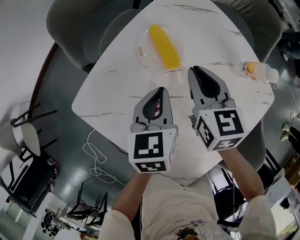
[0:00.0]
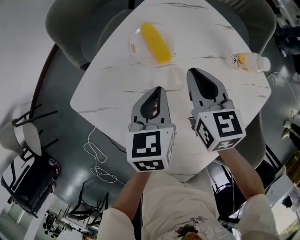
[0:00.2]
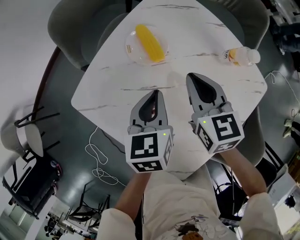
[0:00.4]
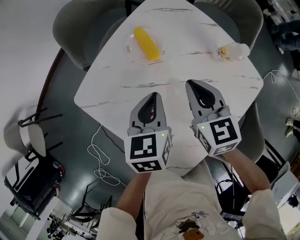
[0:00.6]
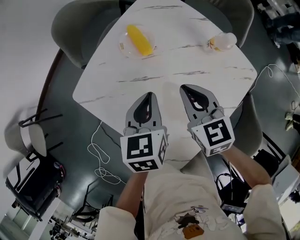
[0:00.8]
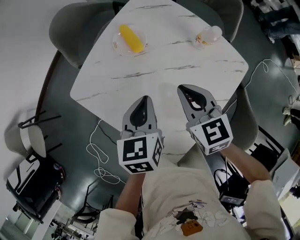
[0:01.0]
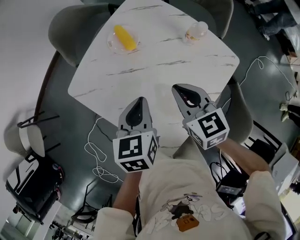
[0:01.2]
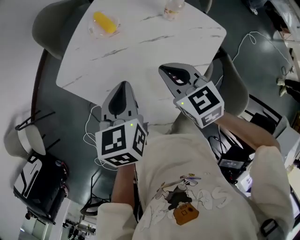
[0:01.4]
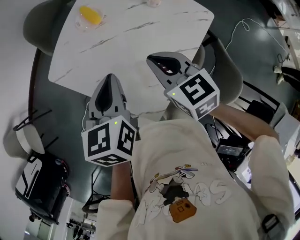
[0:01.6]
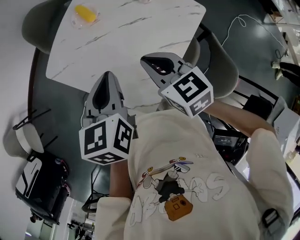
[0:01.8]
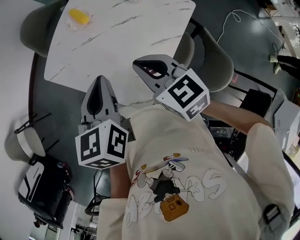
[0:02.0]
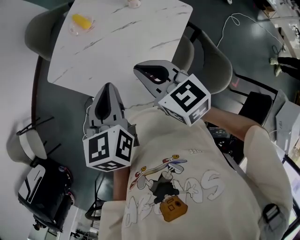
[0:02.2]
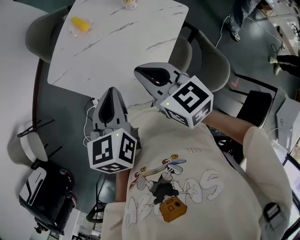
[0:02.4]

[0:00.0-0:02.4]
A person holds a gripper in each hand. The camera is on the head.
0:00.0 to 0:01.2: Both grippers move backward and upward, some 20 cm.
0:01.2 to 0:02.4: The grippers both shift backward and upward by approximately 20 cm.

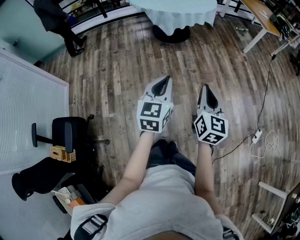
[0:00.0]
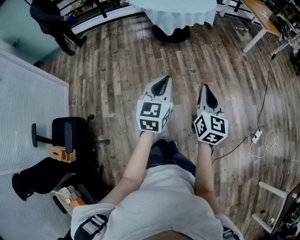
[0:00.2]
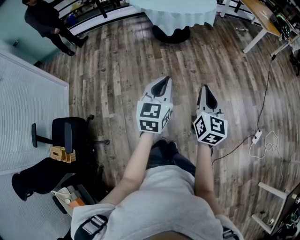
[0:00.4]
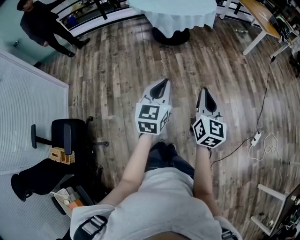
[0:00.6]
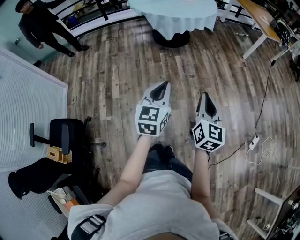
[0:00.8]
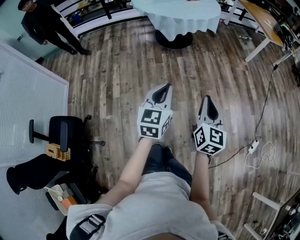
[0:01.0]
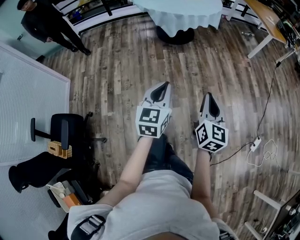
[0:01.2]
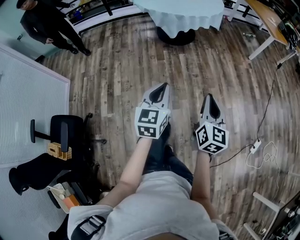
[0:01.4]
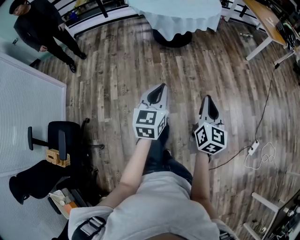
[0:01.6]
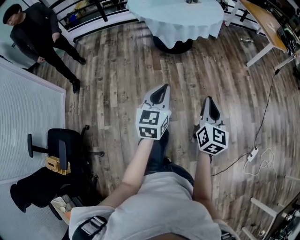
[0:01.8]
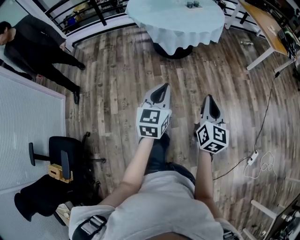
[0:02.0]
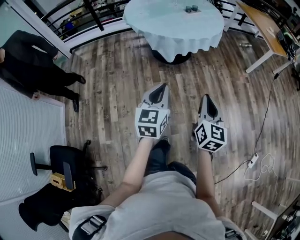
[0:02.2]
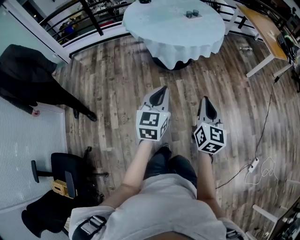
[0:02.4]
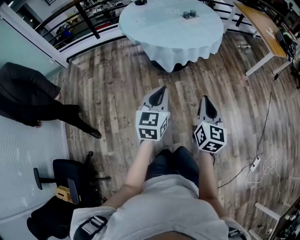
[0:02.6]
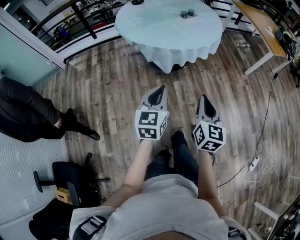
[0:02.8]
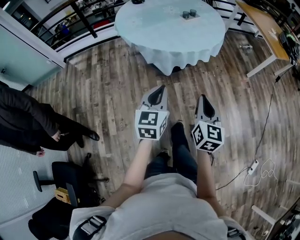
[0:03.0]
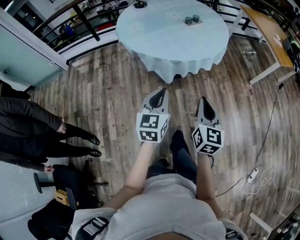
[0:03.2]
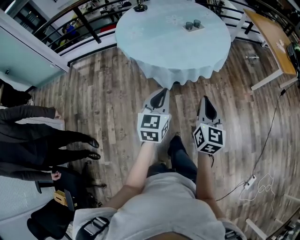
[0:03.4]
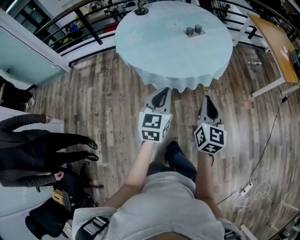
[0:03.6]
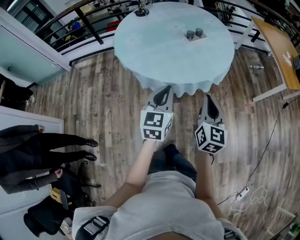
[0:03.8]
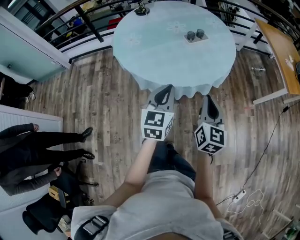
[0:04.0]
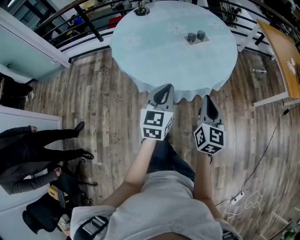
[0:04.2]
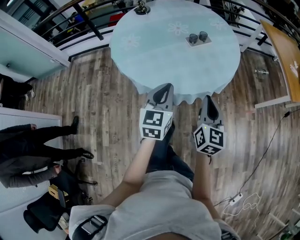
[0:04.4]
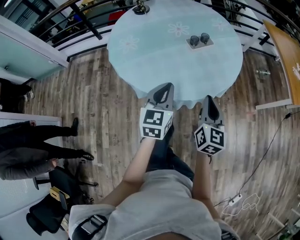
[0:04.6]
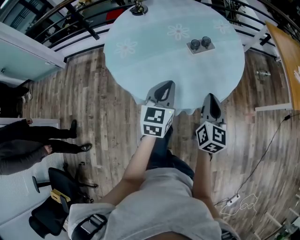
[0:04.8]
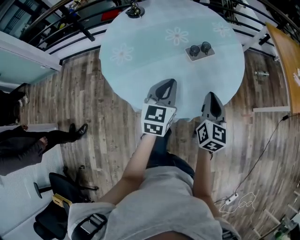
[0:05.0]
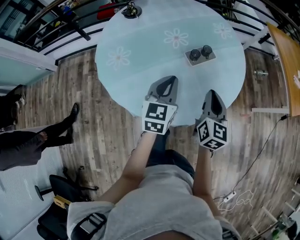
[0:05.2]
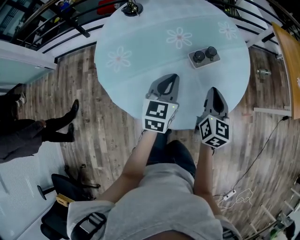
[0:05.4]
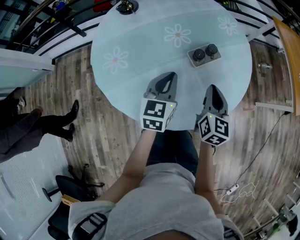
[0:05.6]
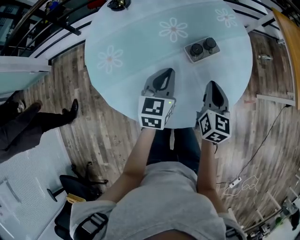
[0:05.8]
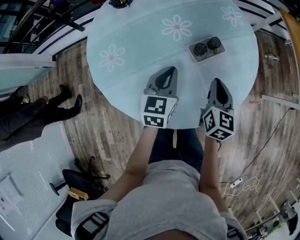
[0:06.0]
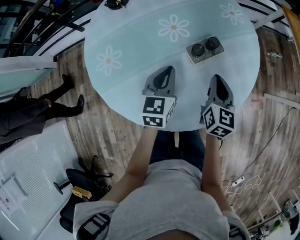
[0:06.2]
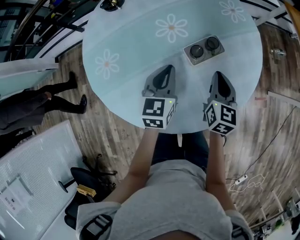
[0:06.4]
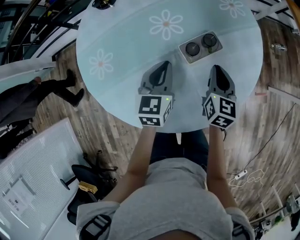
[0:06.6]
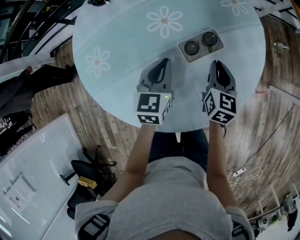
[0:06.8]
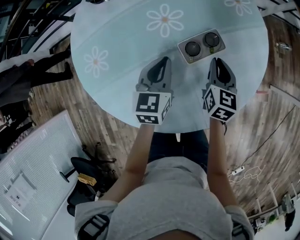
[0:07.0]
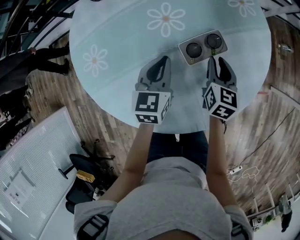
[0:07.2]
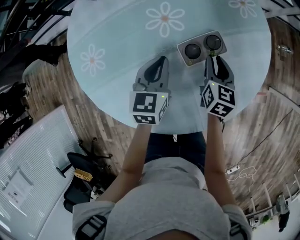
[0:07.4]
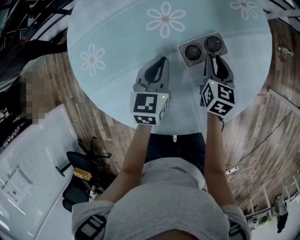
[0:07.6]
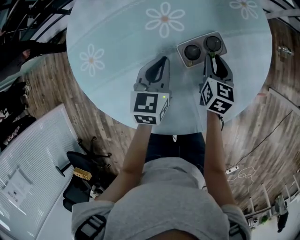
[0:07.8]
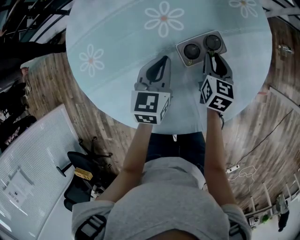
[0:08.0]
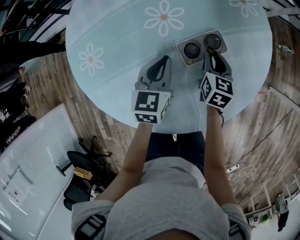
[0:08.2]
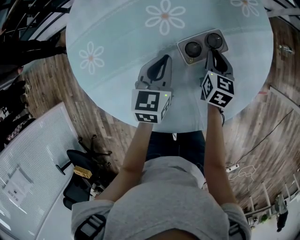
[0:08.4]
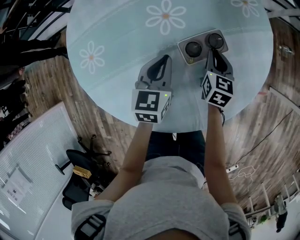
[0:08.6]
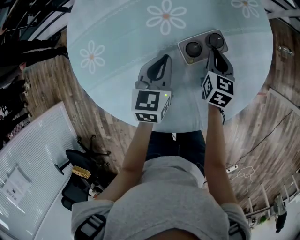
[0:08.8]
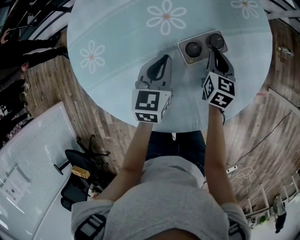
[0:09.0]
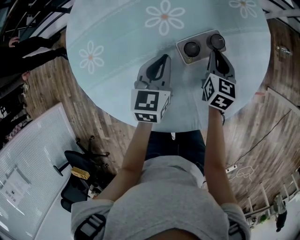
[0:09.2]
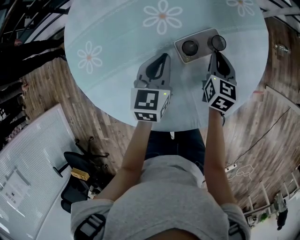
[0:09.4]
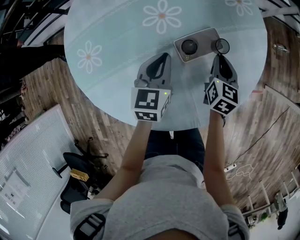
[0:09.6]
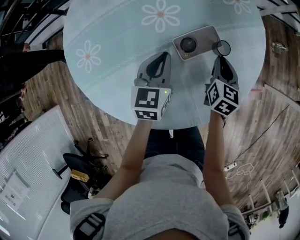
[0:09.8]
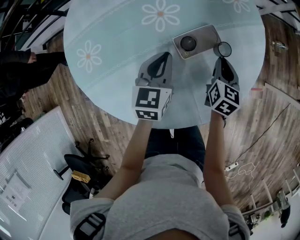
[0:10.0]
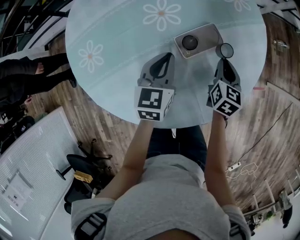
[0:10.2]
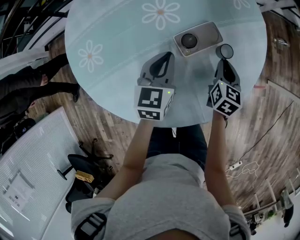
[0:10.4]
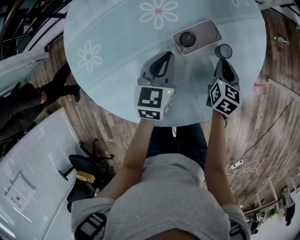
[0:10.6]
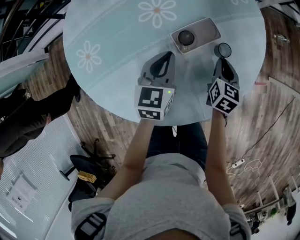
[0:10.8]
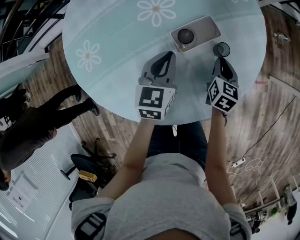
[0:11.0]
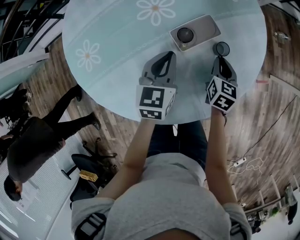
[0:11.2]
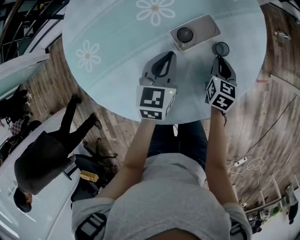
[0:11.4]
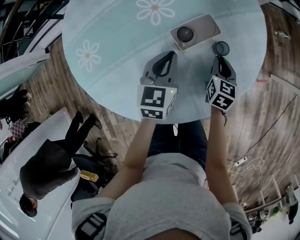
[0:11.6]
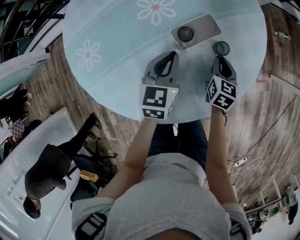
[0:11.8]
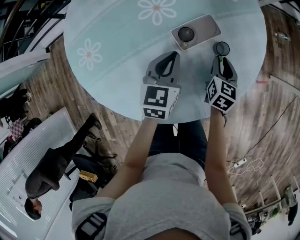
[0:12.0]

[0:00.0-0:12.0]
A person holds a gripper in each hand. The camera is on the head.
0:00.0 to 0:01.6: The grippers both shift forward by roughly 10 cm.
0:01.6 to 0:03.0: The grippers both shift forward by roughly 35 cm.
0:03.0 to 0:04.4: Both grippers move forward, about 35 cm.
0:04.4 to 0:06.0: Both grippers move forward, some 30 cm.
0:06.0 to 0:07.6: The right gripper moves forward and downward, some 20 cm; the left gripper heads forward and downward, covering approximately 10 cm.
0:07.6 to 0:09.0: The grippers make only small movements.
0:09.0 to 0:10.4: The right gripper goes about 10 cm to the right and backward.
0:10.4 to 0:12.0: There are only small adjustments of the grippers.

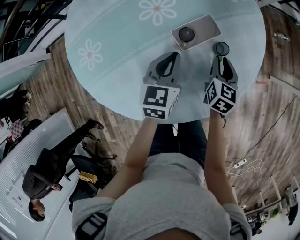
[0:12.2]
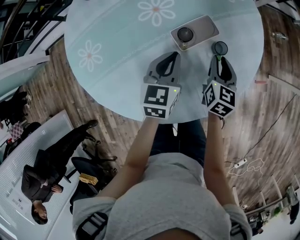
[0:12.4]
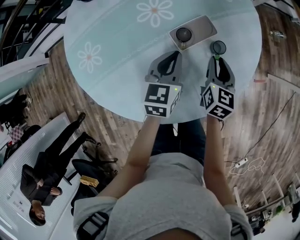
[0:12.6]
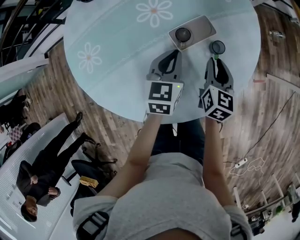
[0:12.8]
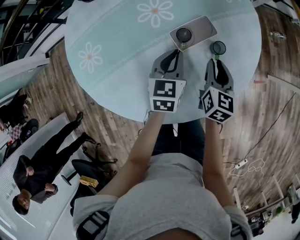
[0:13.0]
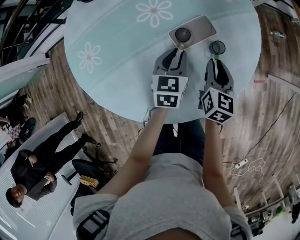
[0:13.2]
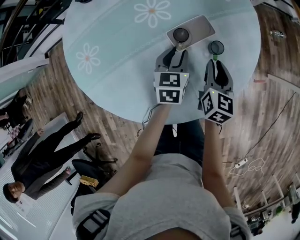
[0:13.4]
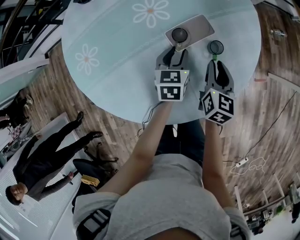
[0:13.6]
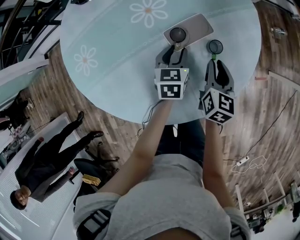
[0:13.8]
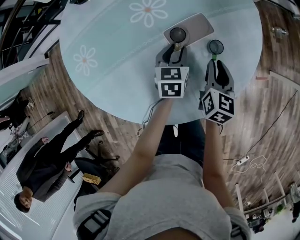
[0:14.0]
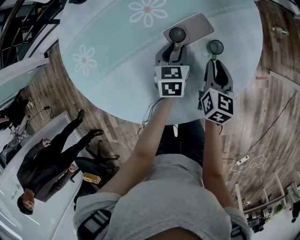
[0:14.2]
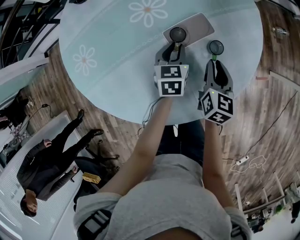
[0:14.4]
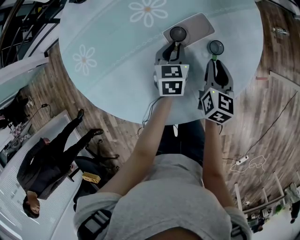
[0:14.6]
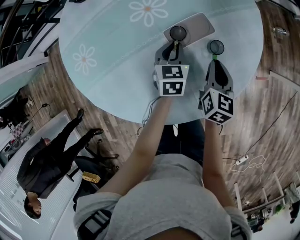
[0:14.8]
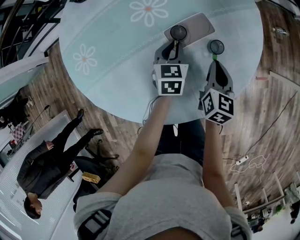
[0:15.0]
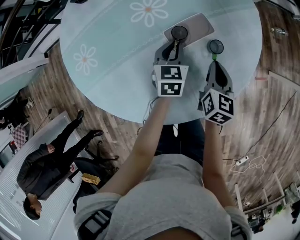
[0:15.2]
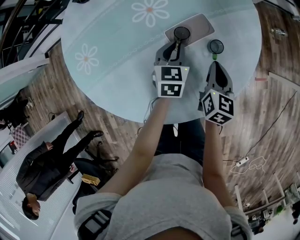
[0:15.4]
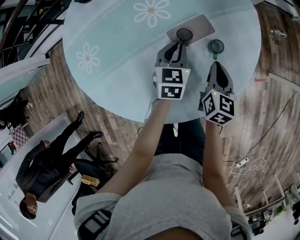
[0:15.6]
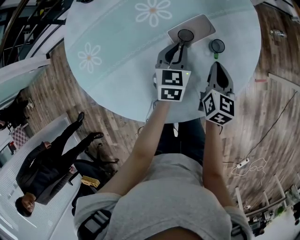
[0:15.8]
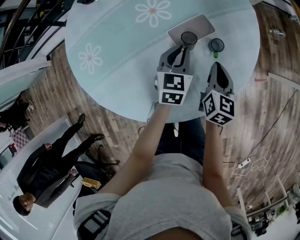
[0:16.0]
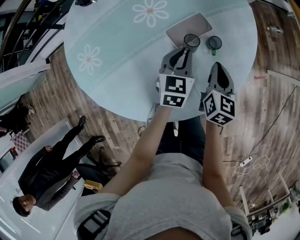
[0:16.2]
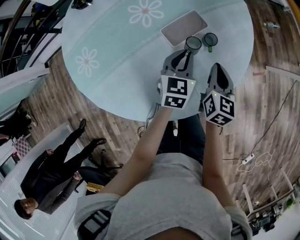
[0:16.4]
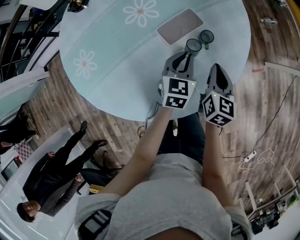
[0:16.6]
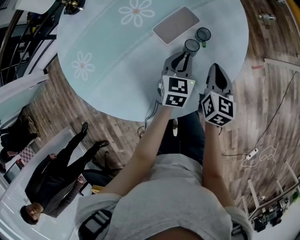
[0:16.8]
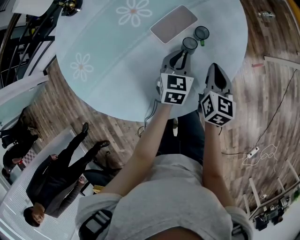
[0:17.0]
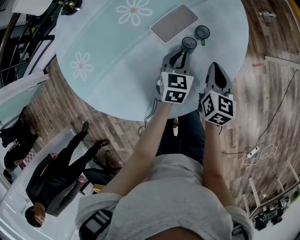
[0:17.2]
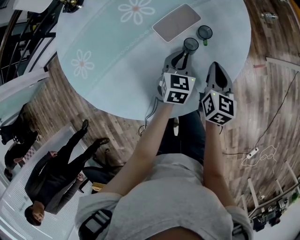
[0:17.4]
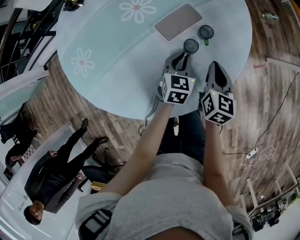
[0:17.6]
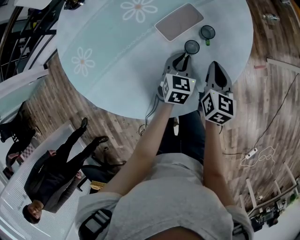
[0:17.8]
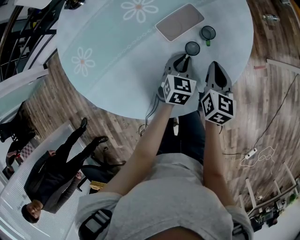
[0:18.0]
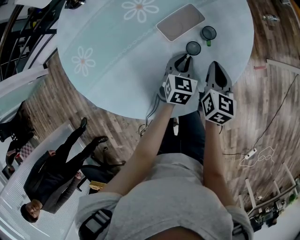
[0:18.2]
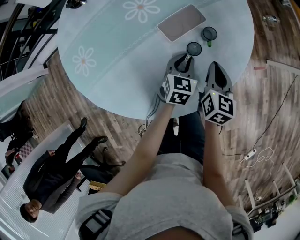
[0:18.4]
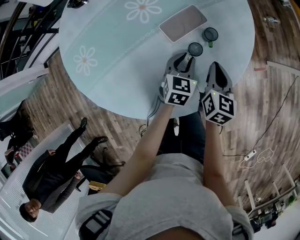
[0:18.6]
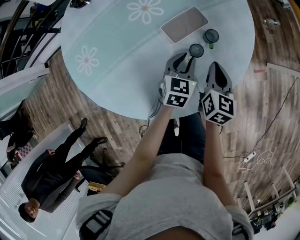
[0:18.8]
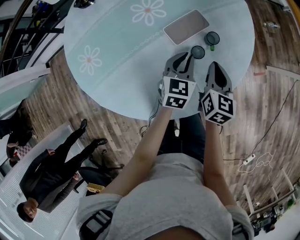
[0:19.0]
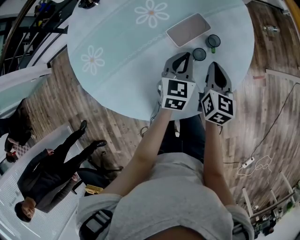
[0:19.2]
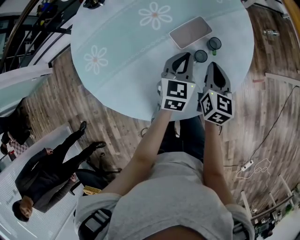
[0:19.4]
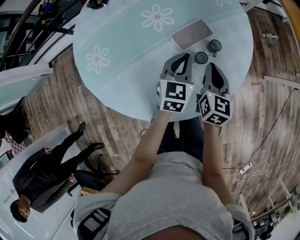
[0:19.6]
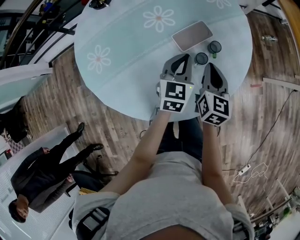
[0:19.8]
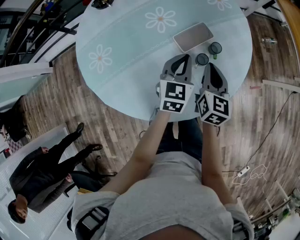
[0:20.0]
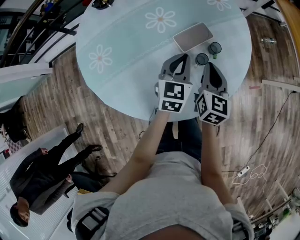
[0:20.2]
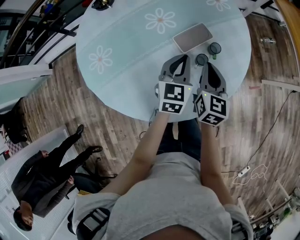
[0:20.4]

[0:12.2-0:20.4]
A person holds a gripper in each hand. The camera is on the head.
0:12.2 to 0:13.8: The left gripper shifts roughly 10 cm downward, and opens its fingers.
0:13.8 to 0:15.4: The left gripper closes.
0:15.4 to 0:17.2: The left gripper is displaced to the right and backward by roughly 10 cm; the right gripper heads backward, covering approximately 5 cm.
0:17.2 to 0:18.8: The grippers move only a little.
0:18.8 to 0:20.4: The grippers both shift upward and to the left by some 10 cm. The left gripper closes its fingers.

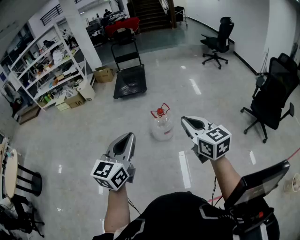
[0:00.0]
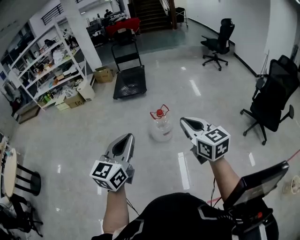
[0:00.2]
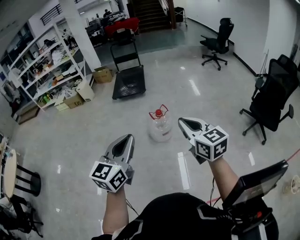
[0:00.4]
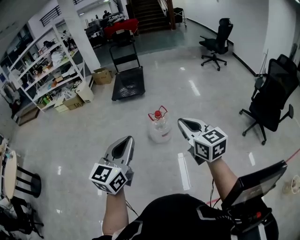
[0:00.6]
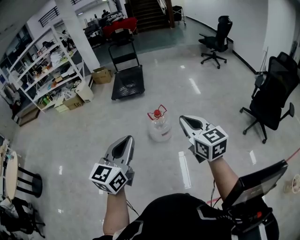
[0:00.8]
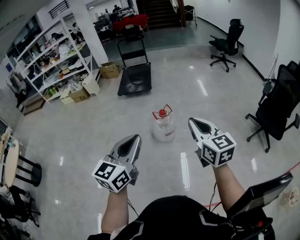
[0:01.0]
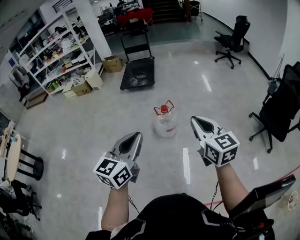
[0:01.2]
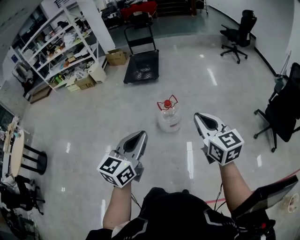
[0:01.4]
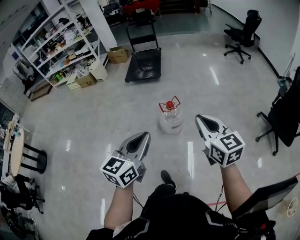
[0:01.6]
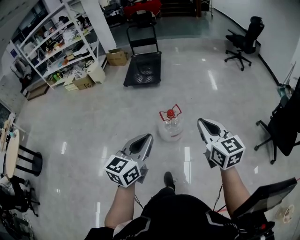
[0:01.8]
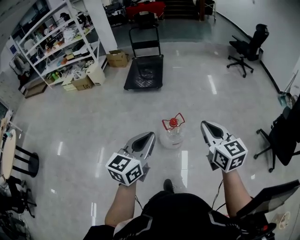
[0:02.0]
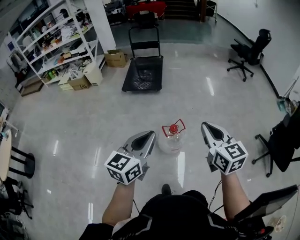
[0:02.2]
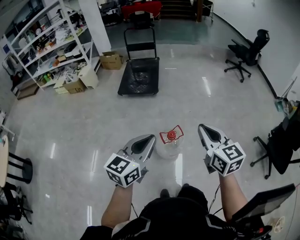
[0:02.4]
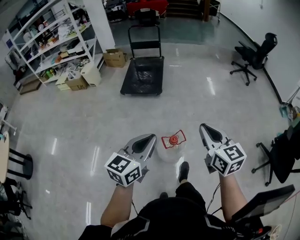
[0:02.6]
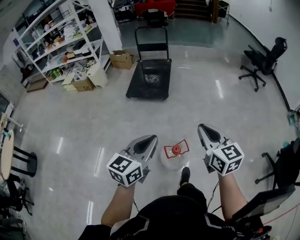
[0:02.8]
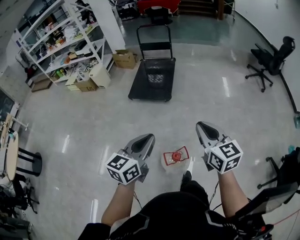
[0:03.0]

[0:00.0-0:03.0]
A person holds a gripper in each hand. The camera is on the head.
0:00.0 to 0:01.6: The right gripper heads forward and to the right, covering some 15 cm; the left gripper is displaced forward, to the right and downward by some 15 cm.
0:01.6 to 0:03.0: Both grippers are carried forward, about 50 cm.
